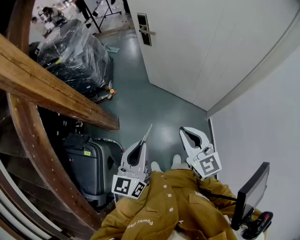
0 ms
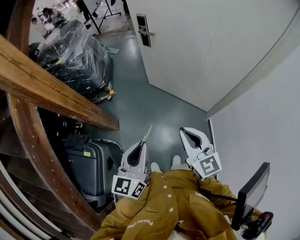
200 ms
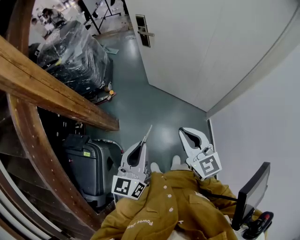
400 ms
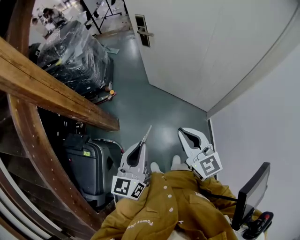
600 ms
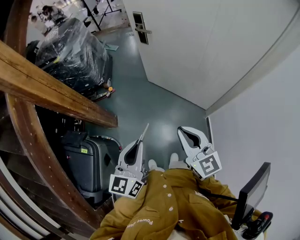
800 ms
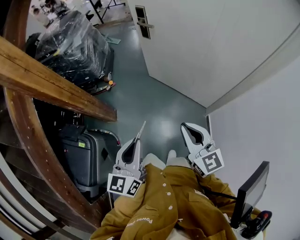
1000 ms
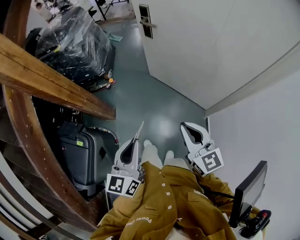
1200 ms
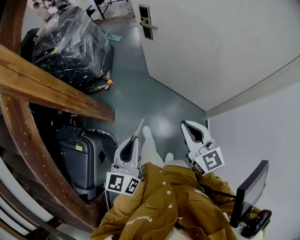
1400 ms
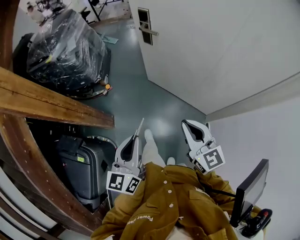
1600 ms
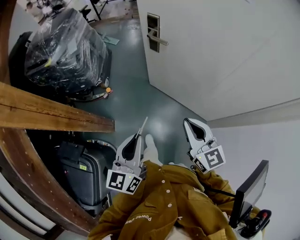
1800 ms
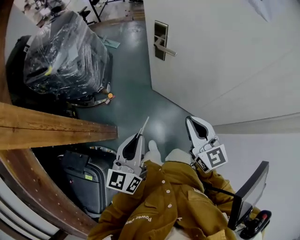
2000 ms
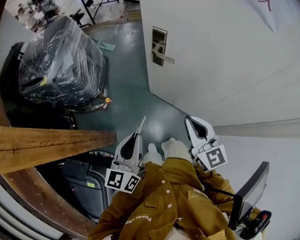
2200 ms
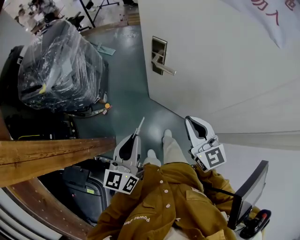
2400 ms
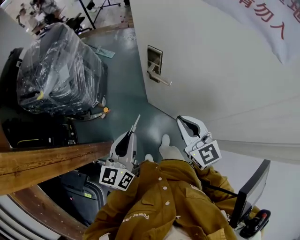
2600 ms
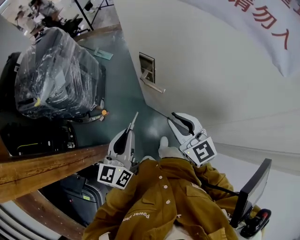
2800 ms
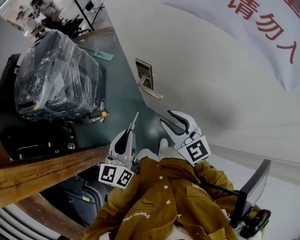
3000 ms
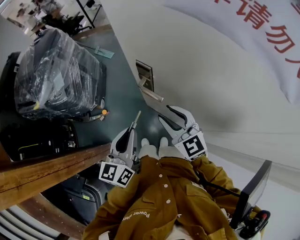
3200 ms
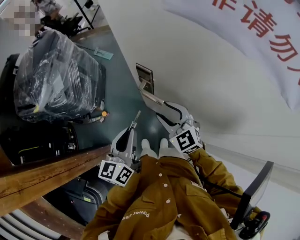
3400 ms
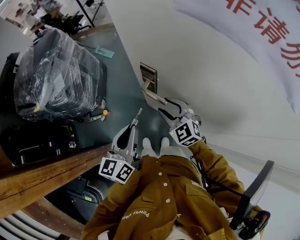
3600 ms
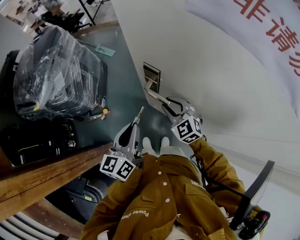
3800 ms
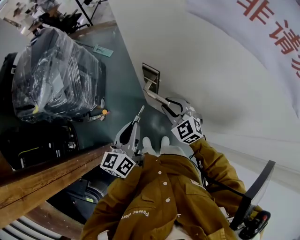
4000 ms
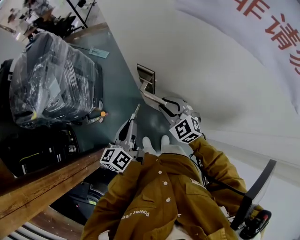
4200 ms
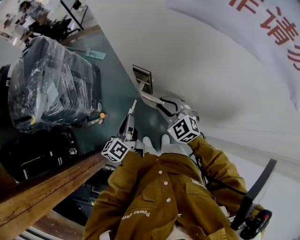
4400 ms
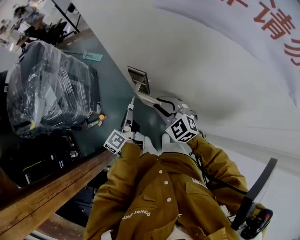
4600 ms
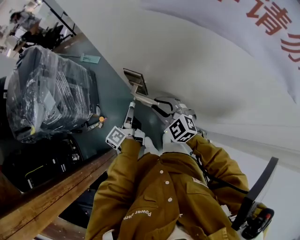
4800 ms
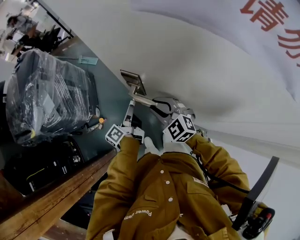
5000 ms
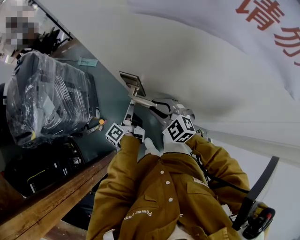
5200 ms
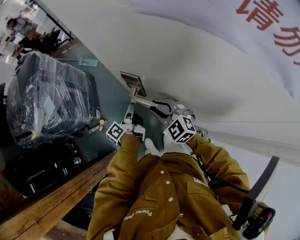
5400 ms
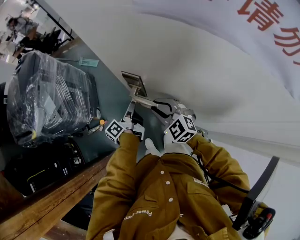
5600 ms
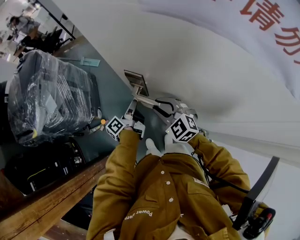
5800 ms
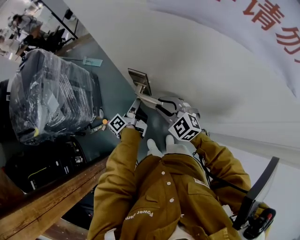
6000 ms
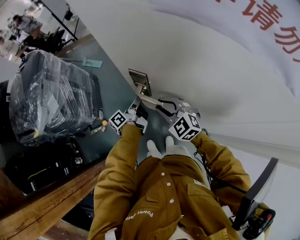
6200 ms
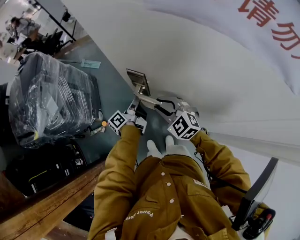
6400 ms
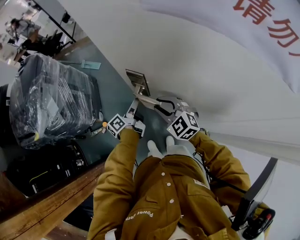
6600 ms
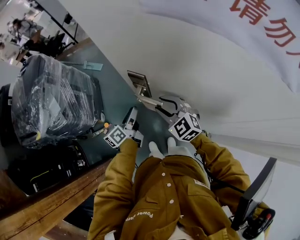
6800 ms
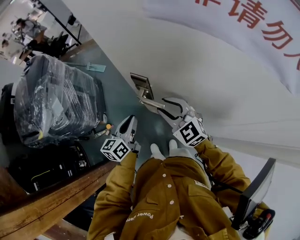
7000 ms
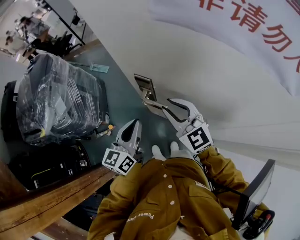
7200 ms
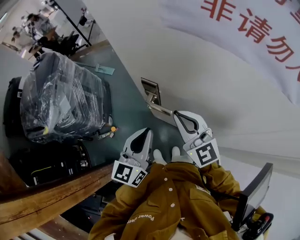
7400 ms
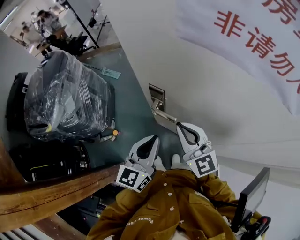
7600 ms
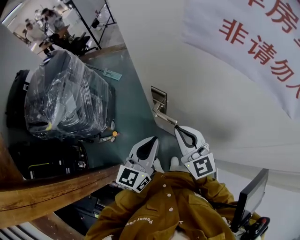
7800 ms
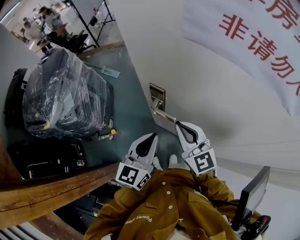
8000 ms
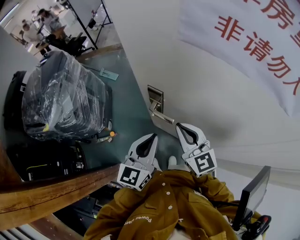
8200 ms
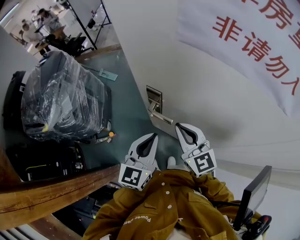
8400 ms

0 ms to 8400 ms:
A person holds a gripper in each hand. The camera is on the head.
0 ms to 1400 ms: The right gripper moves forward and to the right, approximately 10 cm. The left gripper shifts some 5 cm forward.
1400 ms to 2800 ms: The two grippers travel together, forward, approximately 40 cm.
2800 ms to 4200 ms: Both grippers travel together forward and downward, about 15 cm. The right gripper swivels some 30 degrees. The left gripper rotates approximately 20 degrees.
4200 ms to 5600 ms: The left gripper is displaced forward, downward and to the right by roughly 15 cm, and twists roughly 40 degrees counterclockwise, seen from behind.
5600 ms to 7000 ms: The left gripper travels upward and backward by some 10 cm, twists approximately 50 degrees clockwise, seen from behind, and opens, then closes again, while the right gripper is displaced upward by approximately 5 cm.
7000 ms to 8400 ms: The left gripper heads upward, to the right and backward, covering some 15 cm, and changes its angle by roughly 30 degrees. The right gripper is displaced upward by roughly 10 cm, changes its angle by roughly 20 degrees, and closes up.

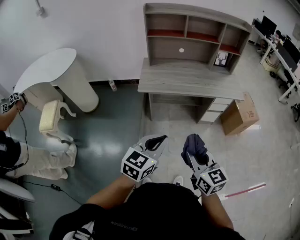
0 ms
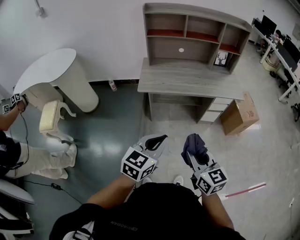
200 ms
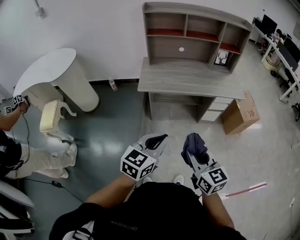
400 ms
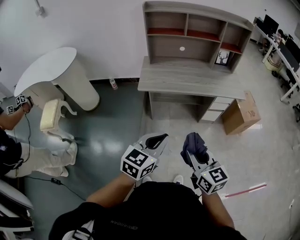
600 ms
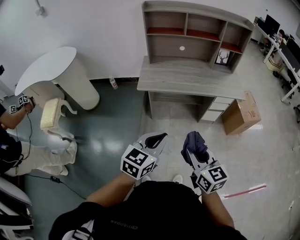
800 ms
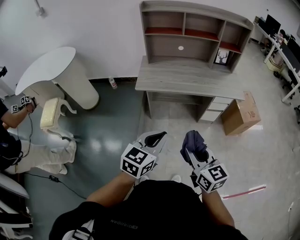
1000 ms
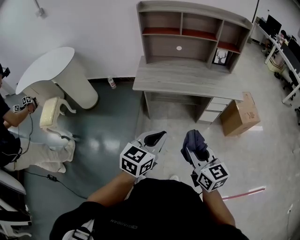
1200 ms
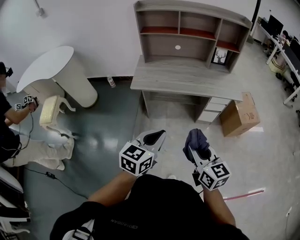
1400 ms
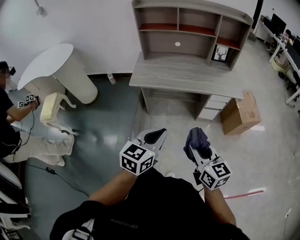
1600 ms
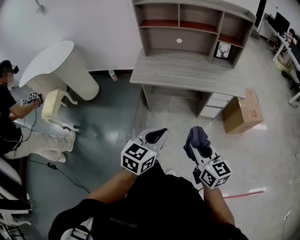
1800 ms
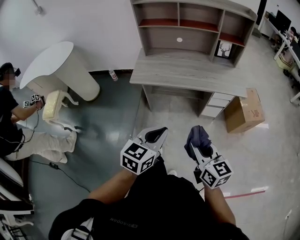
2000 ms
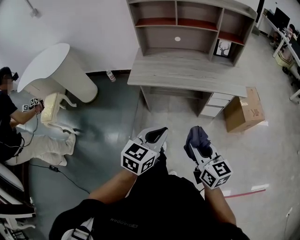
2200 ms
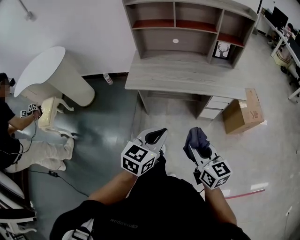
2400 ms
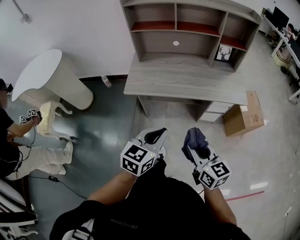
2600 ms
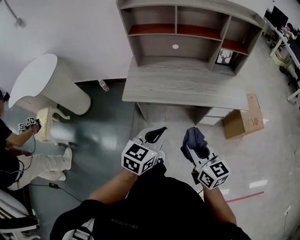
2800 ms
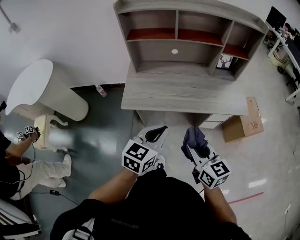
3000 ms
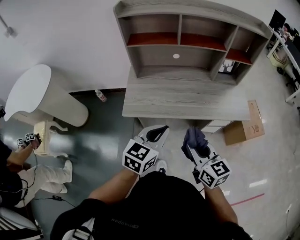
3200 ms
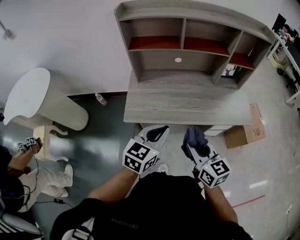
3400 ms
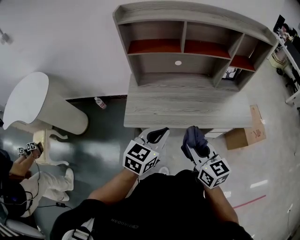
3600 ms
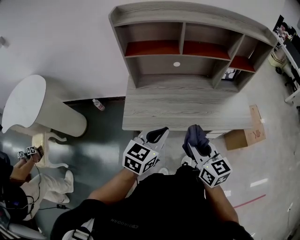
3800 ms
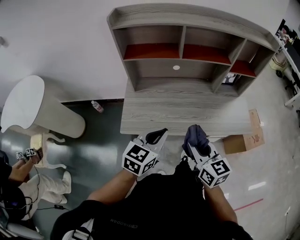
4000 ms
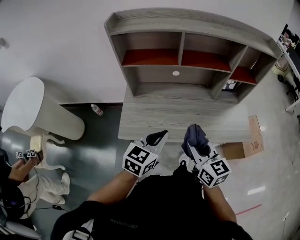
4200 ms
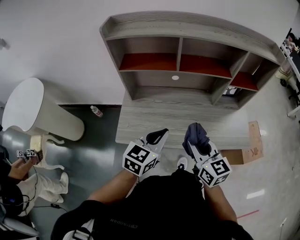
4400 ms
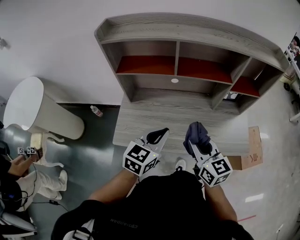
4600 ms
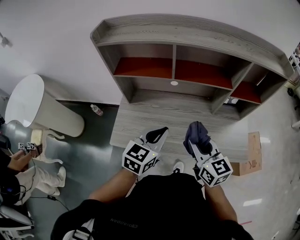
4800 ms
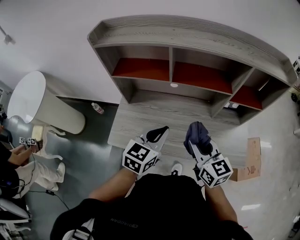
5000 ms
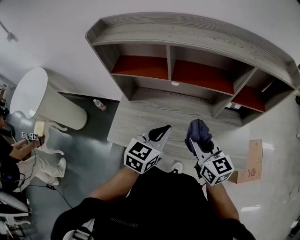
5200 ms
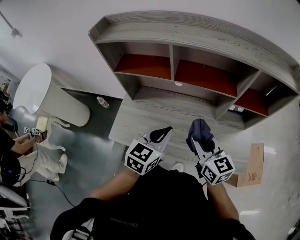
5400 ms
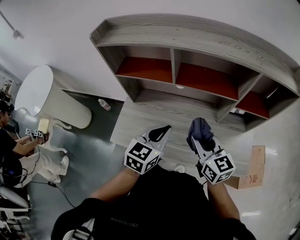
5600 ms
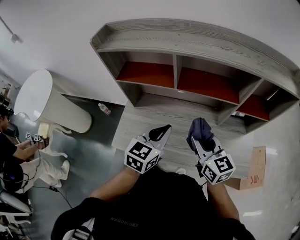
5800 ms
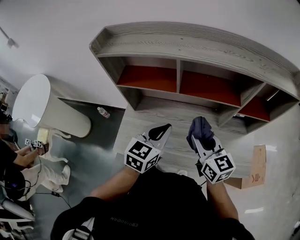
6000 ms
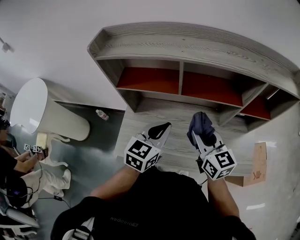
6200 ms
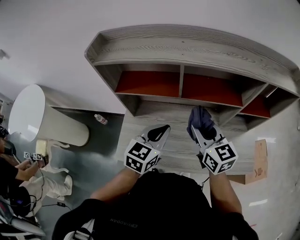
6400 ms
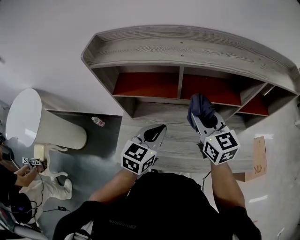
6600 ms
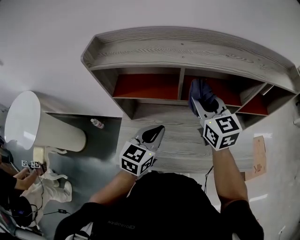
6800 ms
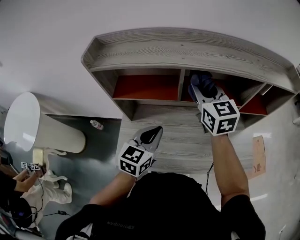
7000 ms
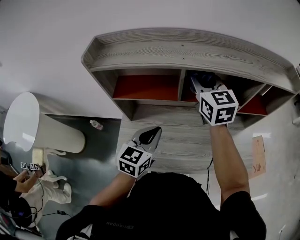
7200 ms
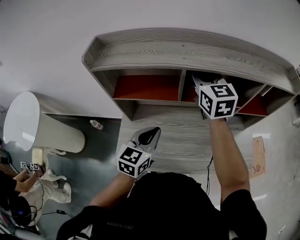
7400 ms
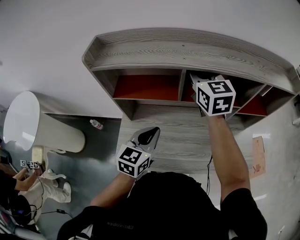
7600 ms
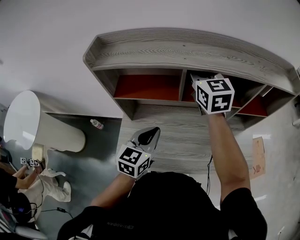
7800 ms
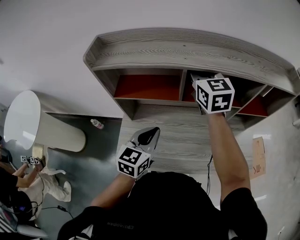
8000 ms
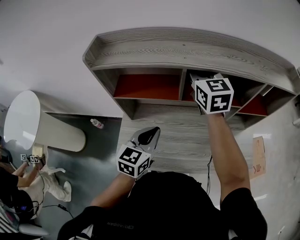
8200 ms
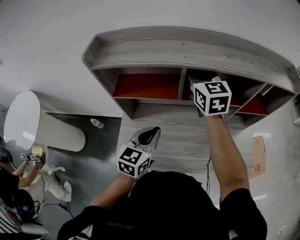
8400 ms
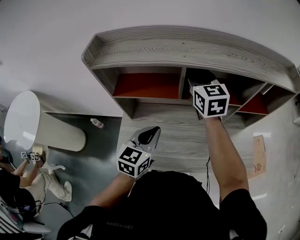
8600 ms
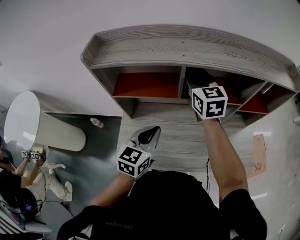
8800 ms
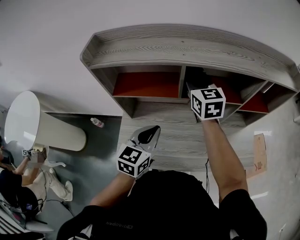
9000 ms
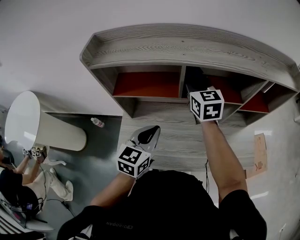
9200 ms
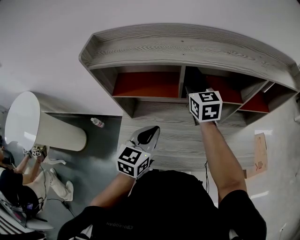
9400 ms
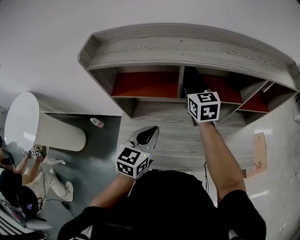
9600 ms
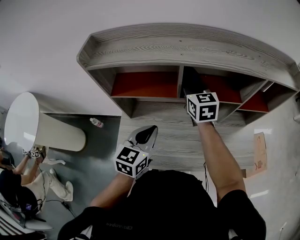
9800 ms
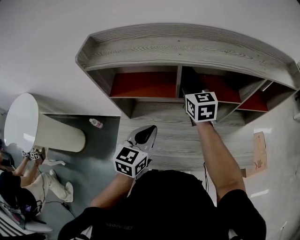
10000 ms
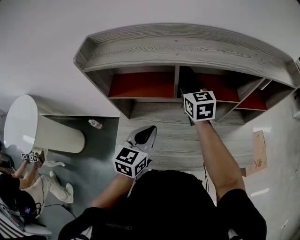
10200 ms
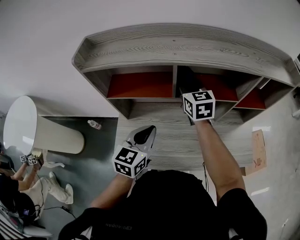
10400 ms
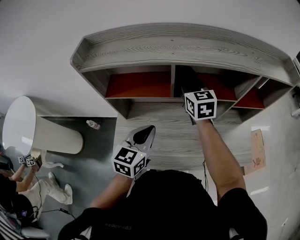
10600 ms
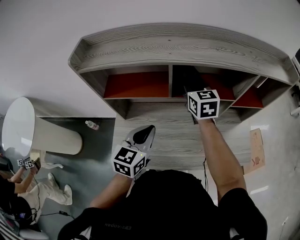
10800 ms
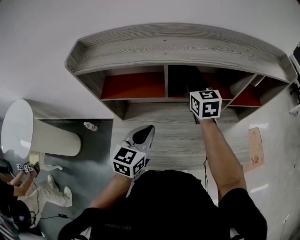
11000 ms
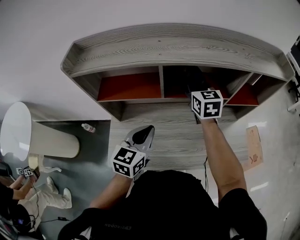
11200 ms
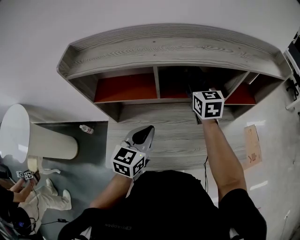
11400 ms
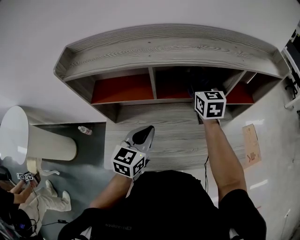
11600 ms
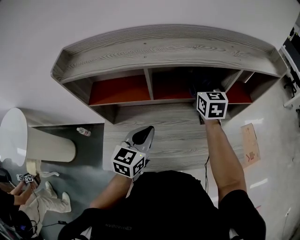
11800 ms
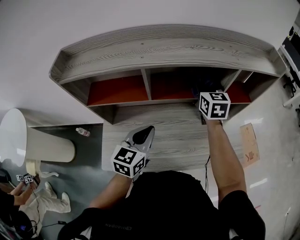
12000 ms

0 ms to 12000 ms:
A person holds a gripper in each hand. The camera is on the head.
0 ms to 1600 ms: The two grippers go approximately 15 cm to the right.
1600 ms to 3000 ms: Both grippers travel together forward, about 25 cm.
3000 ms to 4400 ms: Both grippers move forward, roughly 25 cm.
4400 ms to 6000 ms: The two grippers go about 15 cm forward.
6000 ms to 7600 ms: The left gripper moves to the left, about 10 cm. Meanwhile the right gripper travels forward and upward by about 25 cm, and turns by roughly 20 degrees.
7600 ms to 9000 ms: The right gripper is displaced downward by some 5 cm.
9000 ms to 10400 ms: The grippers make only small movements.
10400 ms to 12000 ms: The right gripper is displaced to the right by about 20 cm; the left gripper shifts some 10 cm to the right.

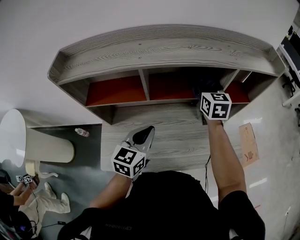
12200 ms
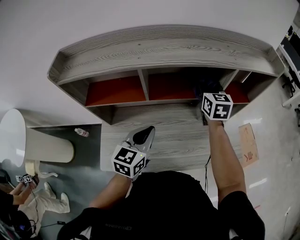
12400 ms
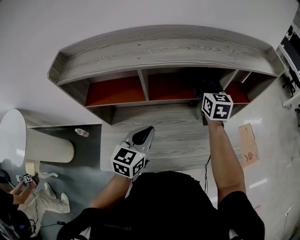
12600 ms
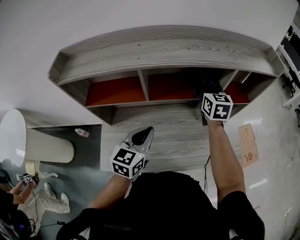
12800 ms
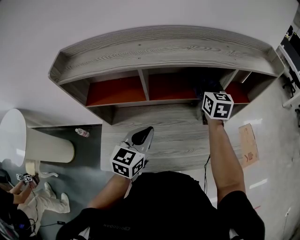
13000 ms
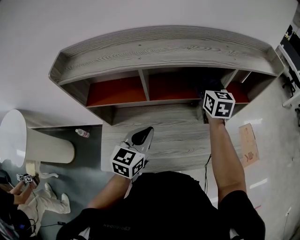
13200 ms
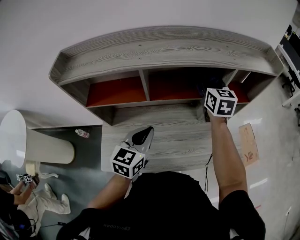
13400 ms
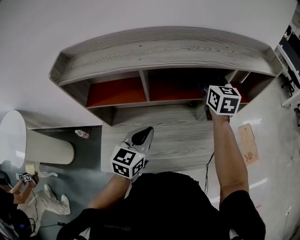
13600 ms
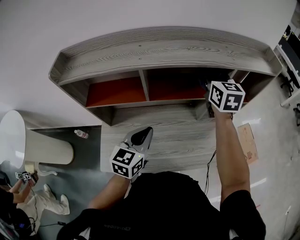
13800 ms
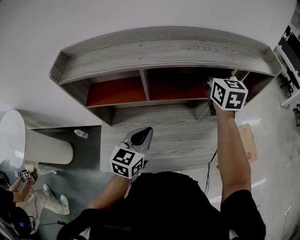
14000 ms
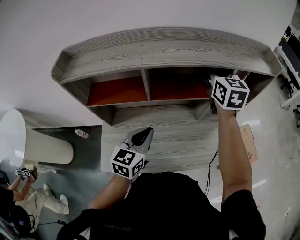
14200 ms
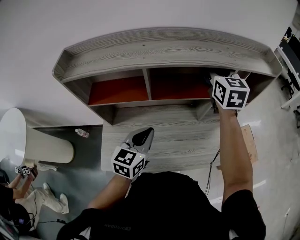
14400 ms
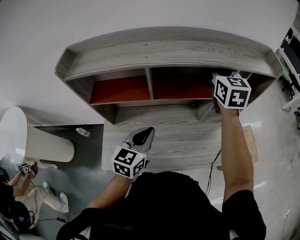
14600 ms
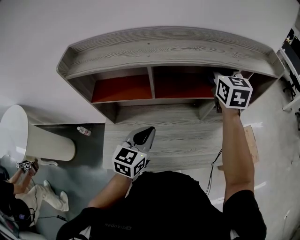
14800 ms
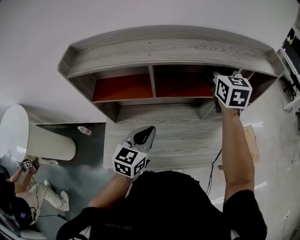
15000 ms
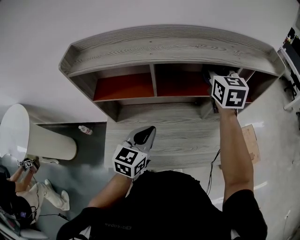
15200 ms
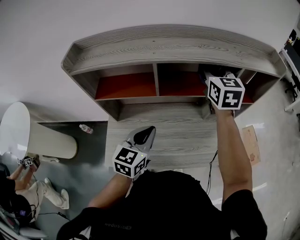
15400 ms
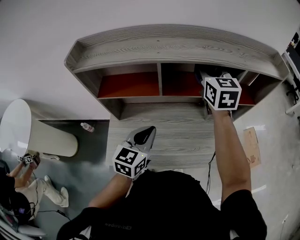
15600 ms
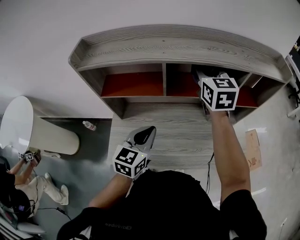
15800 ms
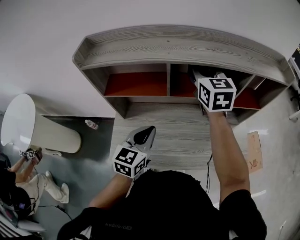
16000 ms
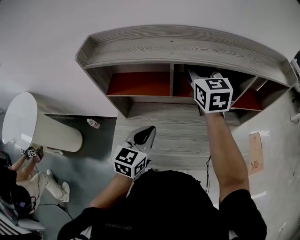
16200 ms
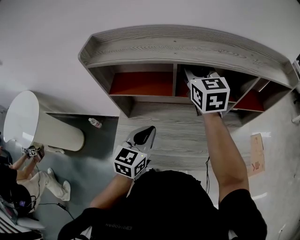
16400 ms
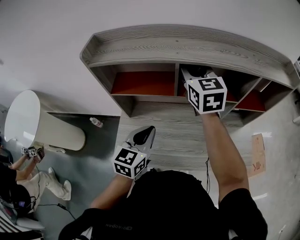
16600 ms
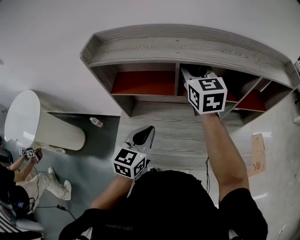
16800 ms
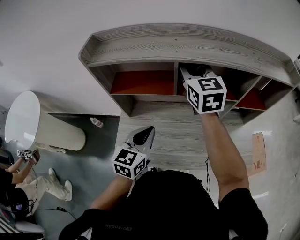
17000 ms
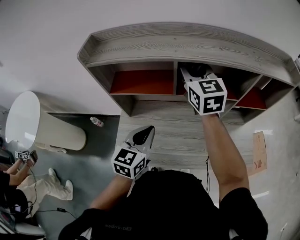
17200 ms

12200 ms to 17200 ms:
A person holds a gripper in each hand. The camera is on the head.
12200 ms to 13800 ms: The right gripper travels upward by some 10 cm.
13800 ms to 15600 ms: The right gripper shifts approximately 10 cm to the left.
15600 ms to 17200 ms: The left gripper moves to the left, approximately 5 cm; the right gripper is displaced to the left by roughly 10 cm.
